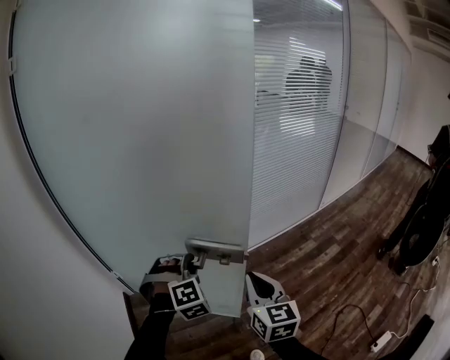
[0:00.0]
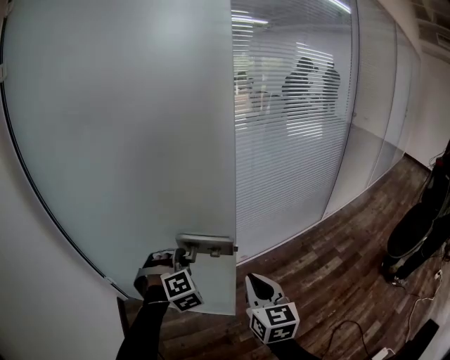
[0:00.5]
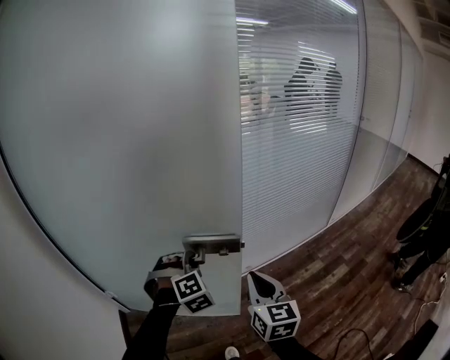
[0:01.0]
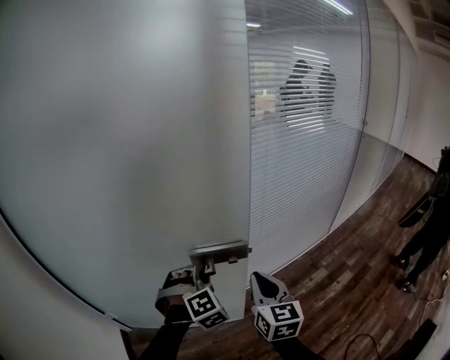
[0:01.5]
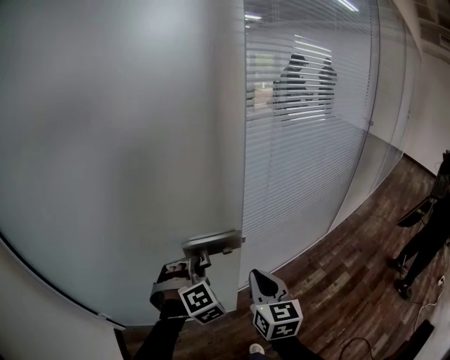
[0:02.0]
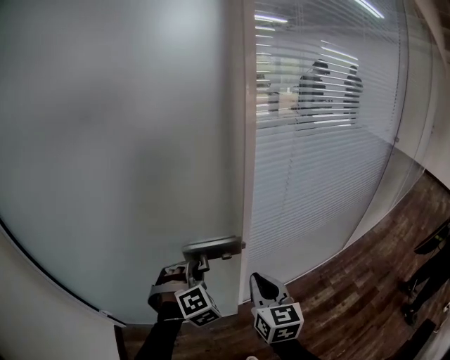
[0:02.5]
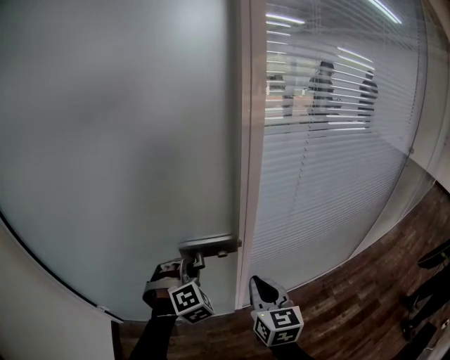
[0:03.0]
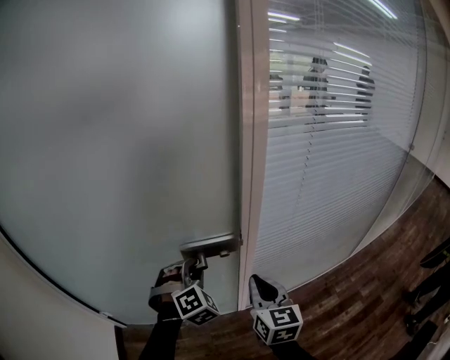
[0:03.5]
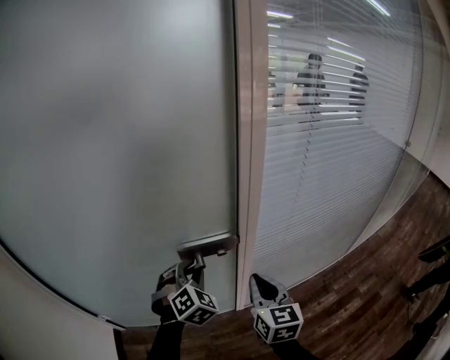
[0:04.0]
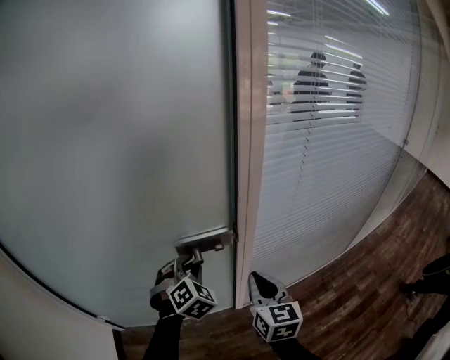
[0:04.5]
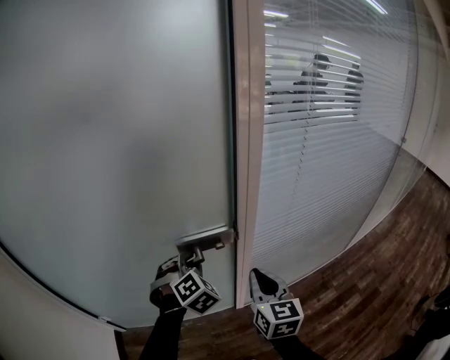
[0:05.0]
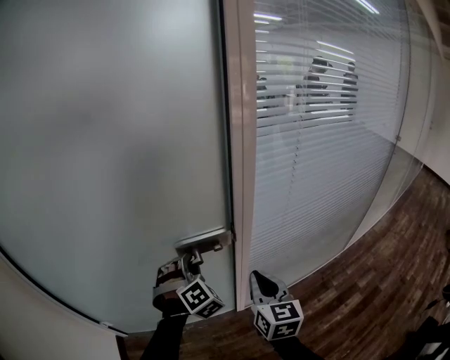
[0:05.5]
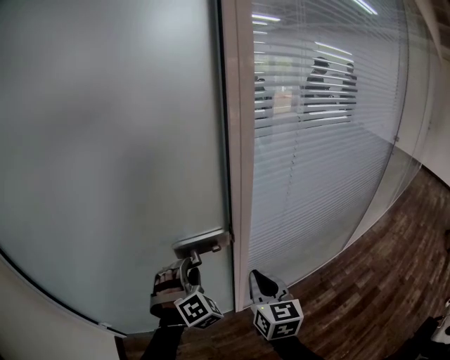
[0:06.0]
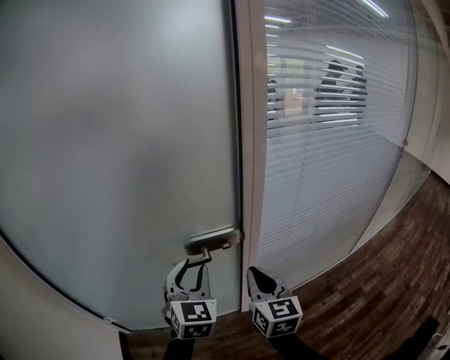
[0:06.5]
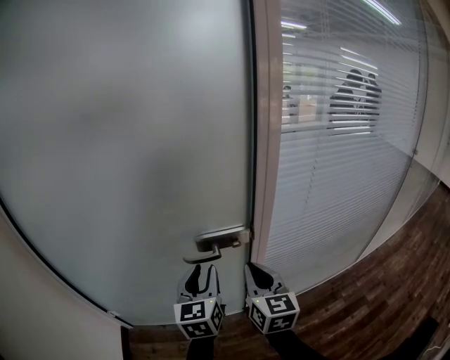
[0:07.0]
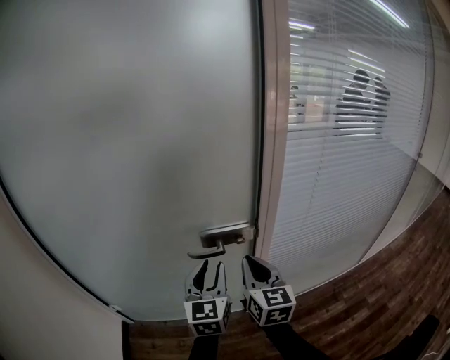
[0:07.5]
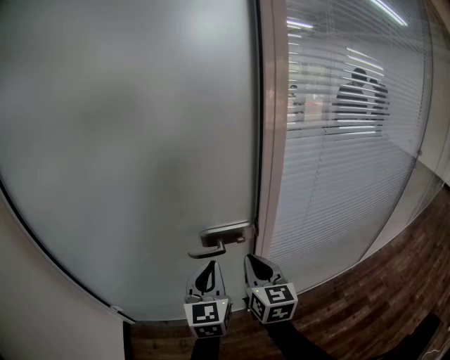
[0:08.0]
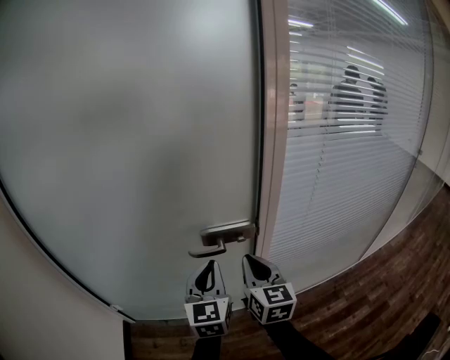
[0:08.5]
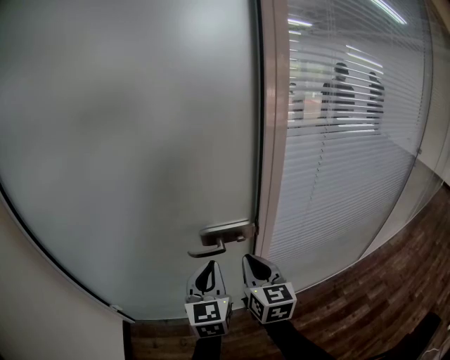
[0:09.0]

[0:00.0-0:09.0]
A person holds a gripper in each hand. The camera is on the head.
0:00.0 to 0:02.0: The grippers both shift forward by approximately 35 cm.
0:02.0 to 0:04.5: Both grippers move forward, approximately 15 cm. The left gripper changes its angle by roughly 30 degrees.
0:04.5 to 0:07.0: The right gripper moves to the left, about 5 cm. The left gripper moves backward and upward, roughly 10 cm, and rolls counterclockwise, seen from behind, by some 60 degrees.
0:07.0 to 0:09.0: The left gripper closes up.

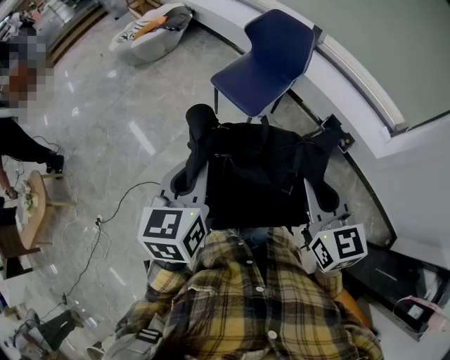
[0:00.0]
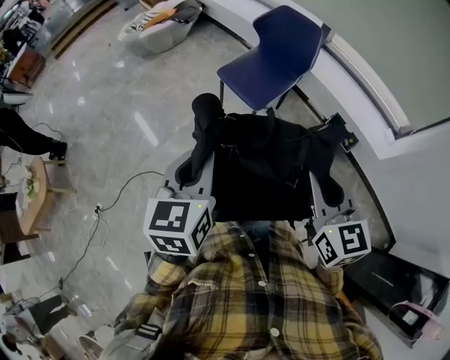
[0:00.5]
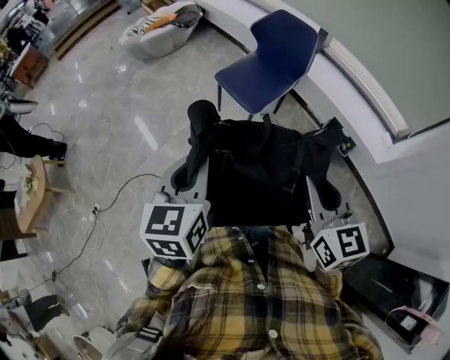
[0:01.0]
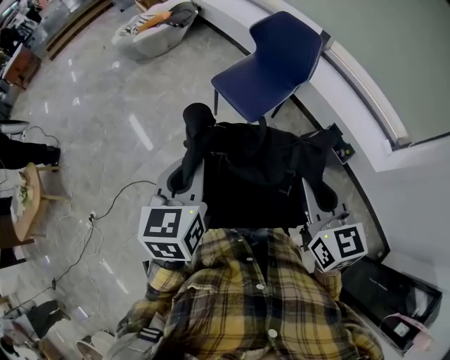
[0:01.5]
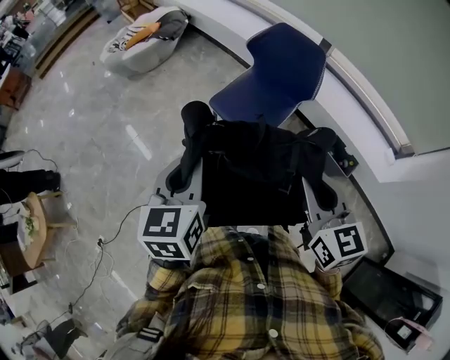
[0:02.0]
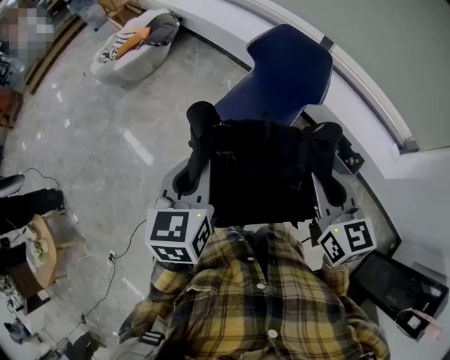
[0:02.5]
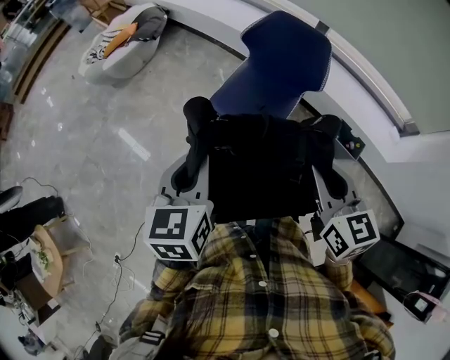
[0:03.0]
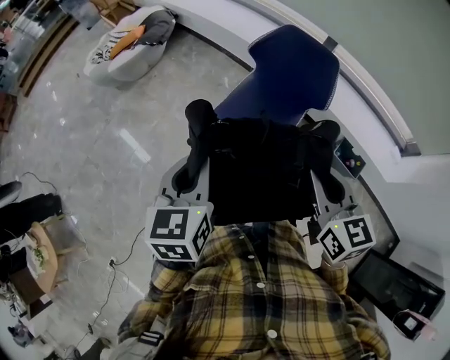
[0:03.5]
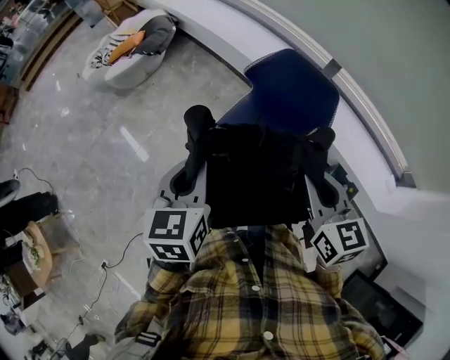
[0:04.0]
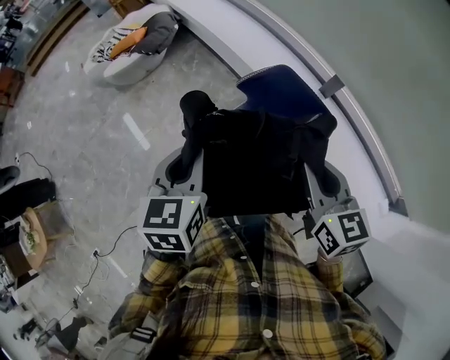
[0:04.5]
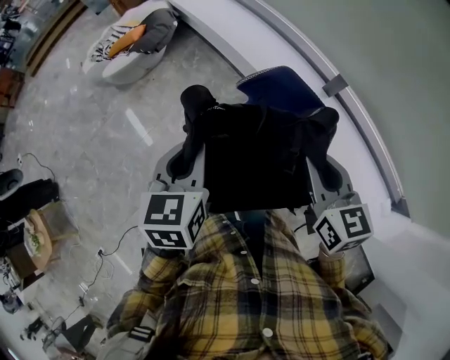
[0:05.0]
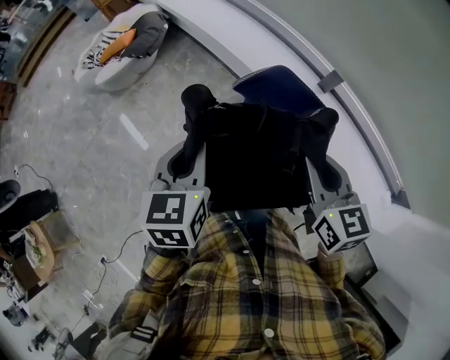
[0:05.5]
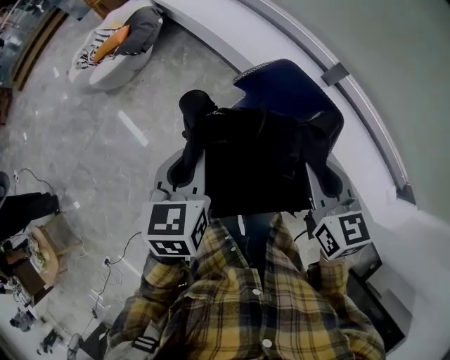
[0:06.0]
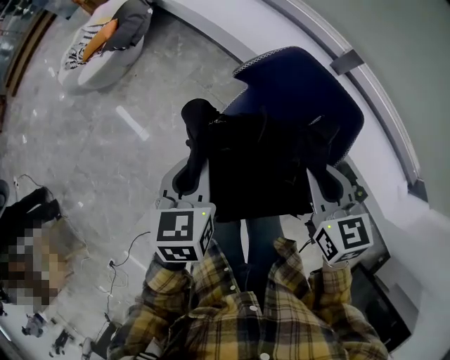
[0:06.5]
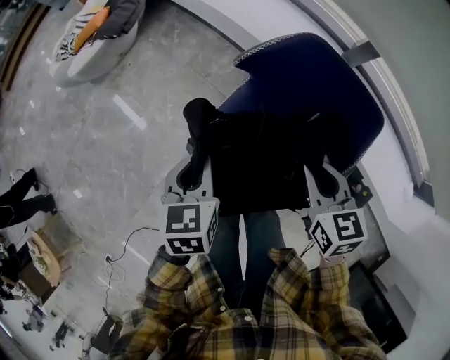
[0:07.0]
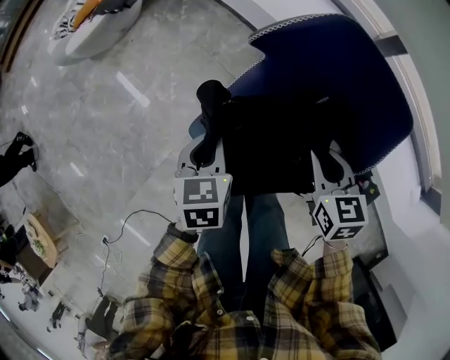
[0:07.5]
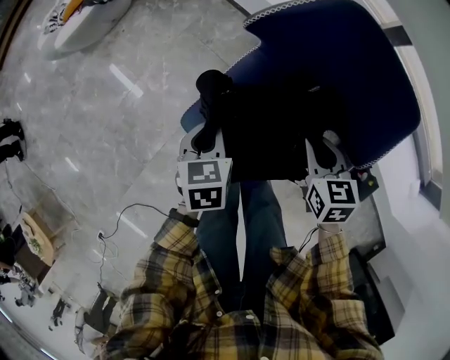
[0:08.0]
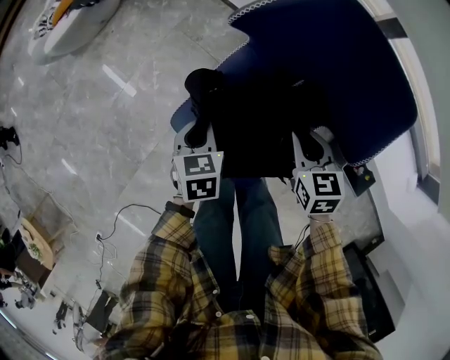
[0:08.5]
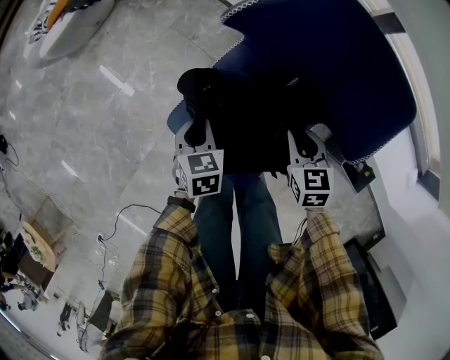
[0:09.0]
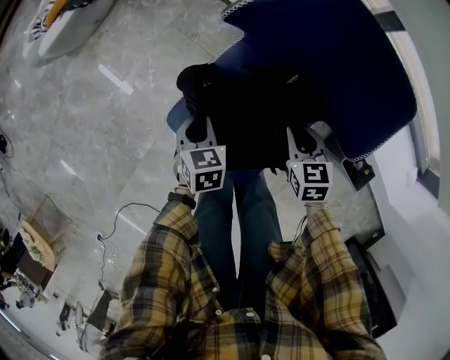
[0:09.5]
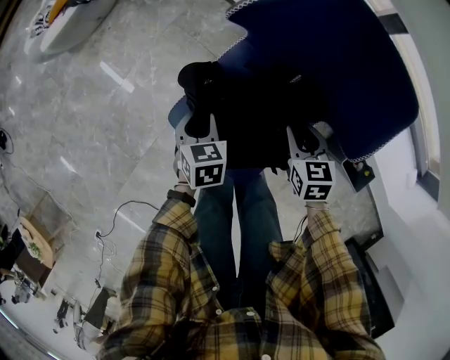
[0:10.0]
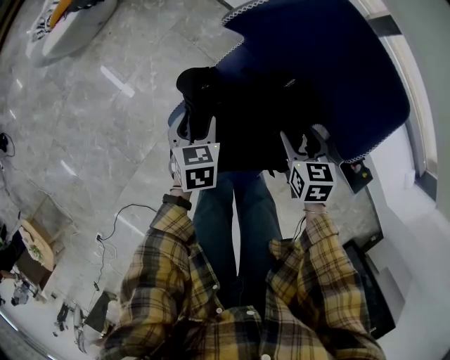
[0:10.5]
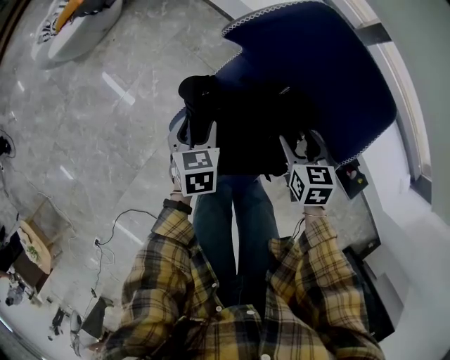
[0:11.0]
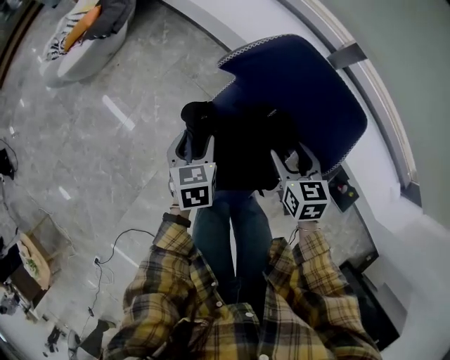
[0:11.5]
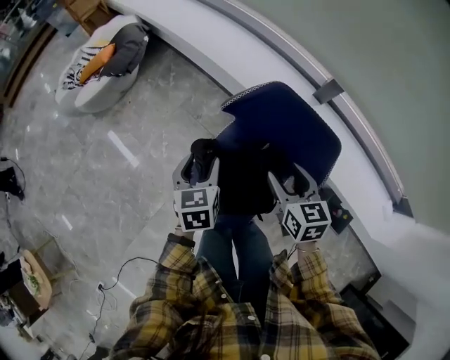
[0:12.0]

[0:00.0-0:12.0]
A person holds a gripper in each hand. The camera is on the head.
0:00.0 to 0:02.0: The two grippers go about 20 cm forward.
0:02.0 to 0:04.0: The grippers both shift forward by roughly 25 cm.
0:04.0 to 0:06.0: The left gripper is displaced forward and to the right by about 15 cm, while the right gripper is displaced forward by approximately 15 cm.
0:06.0 to 0:08.0: The two grippers go some 35 cm downward. The right gripper turns by approximately 20 degrees.
0:08.0 to 0:10.0: The grippers both shift downward by roughly 5 cm.
0:10.0 to 0:12.0: Both grippers move upward, roughly 25 cm. The left gripper opens, while the right gripper opens its fingers.

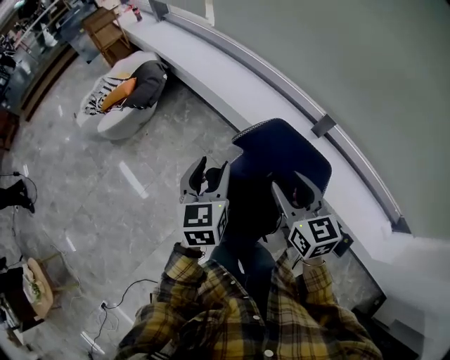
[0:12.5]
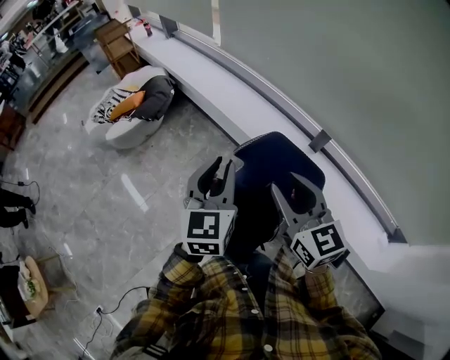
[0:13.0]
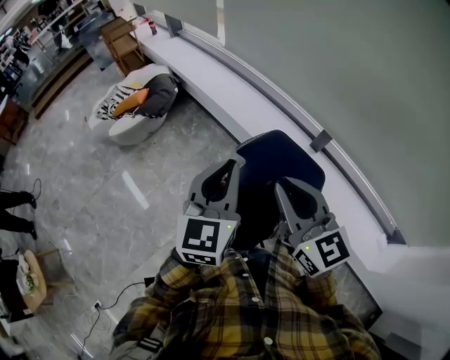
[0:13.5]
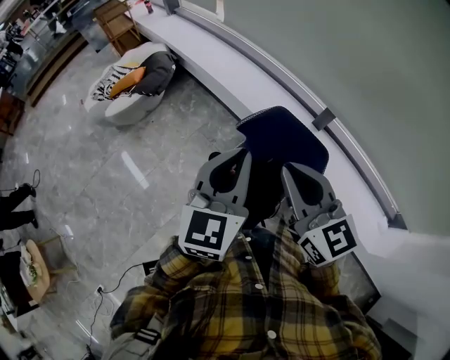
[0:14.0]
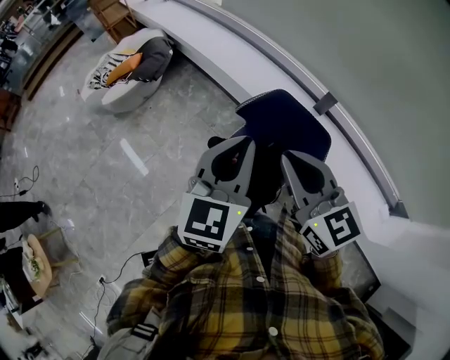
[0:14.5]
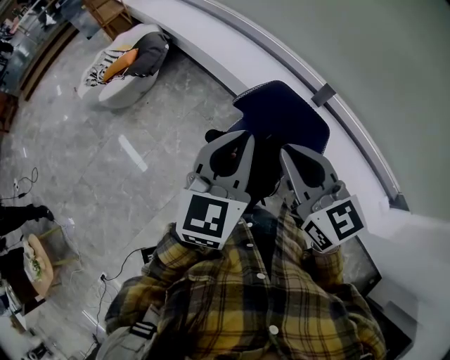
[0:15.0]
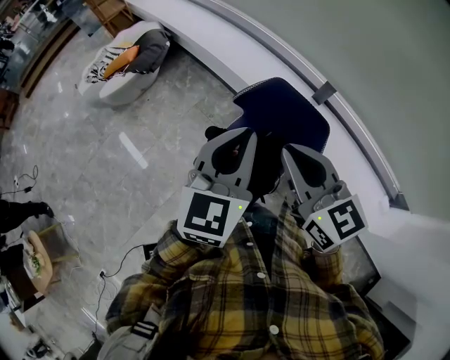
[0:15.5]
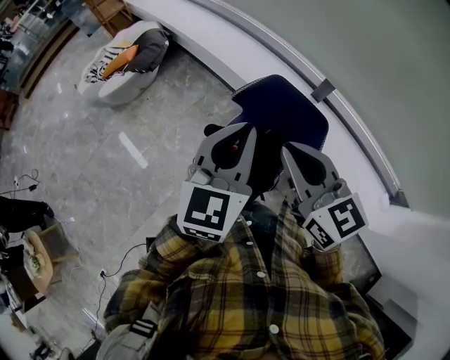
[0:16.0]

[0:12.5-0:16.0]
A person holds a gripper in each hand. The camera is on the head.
0:12.5 to 0:14.5: The right gripper moves upward and backward, some 15 cm, and closes its fingers; the left gripper moves upward, backward and to the right, roughly 15 cm, and closes up.
0:14.5 to 0:16.0: The grippers stay close to where they were, moving slightly.

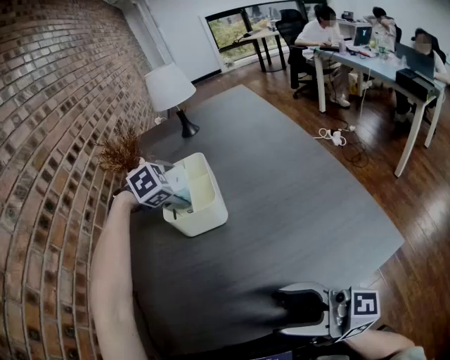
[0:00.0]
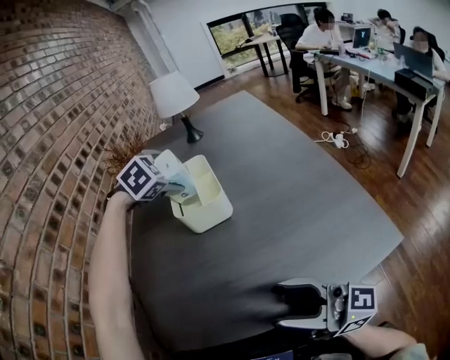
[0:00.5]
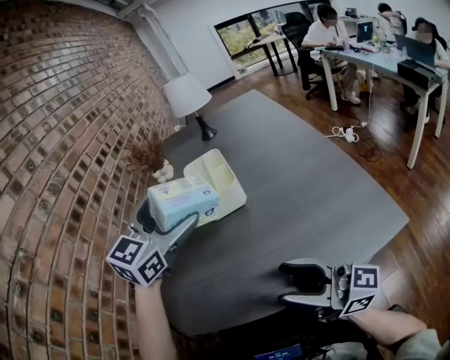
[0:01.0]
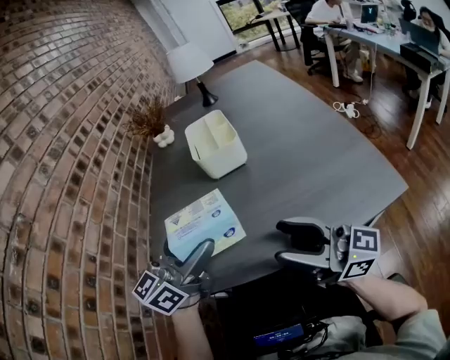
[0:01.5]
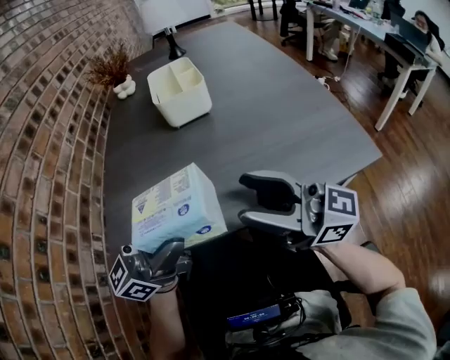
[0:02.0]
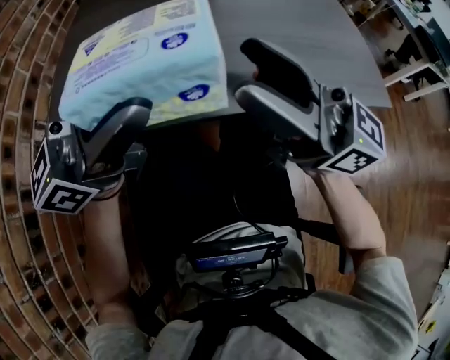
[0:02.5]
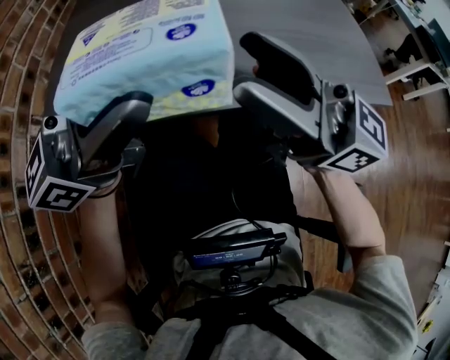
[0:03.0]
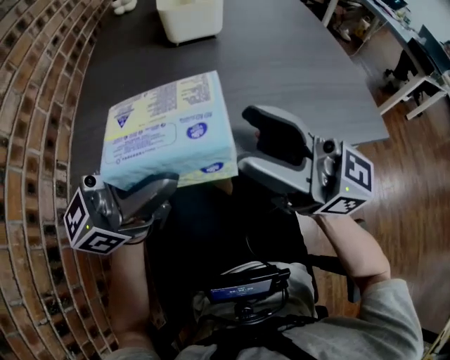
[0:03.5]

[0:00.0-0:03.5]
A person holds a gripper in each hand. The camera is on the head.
0:00.0 to 0:02.0: The left gripper is displaced backward by about 40 cm, and points its fingers approximately 90 degrees further upward.
0:02.0 to 0:03.5: The grippers move only a little.
